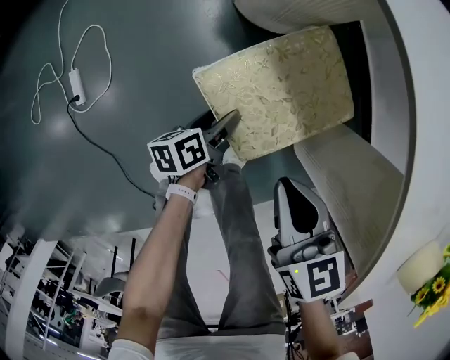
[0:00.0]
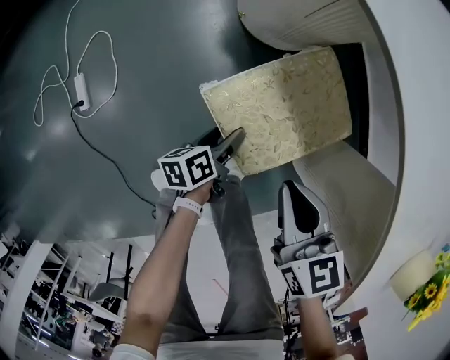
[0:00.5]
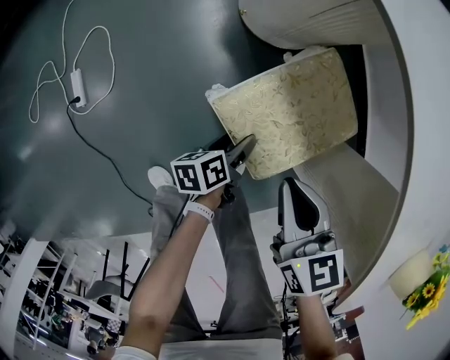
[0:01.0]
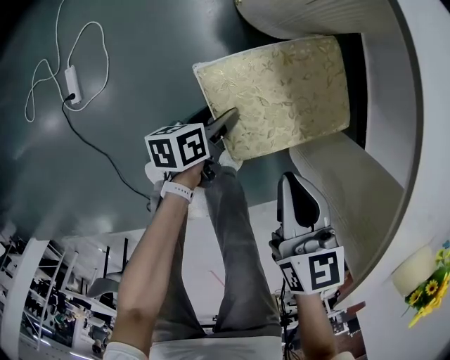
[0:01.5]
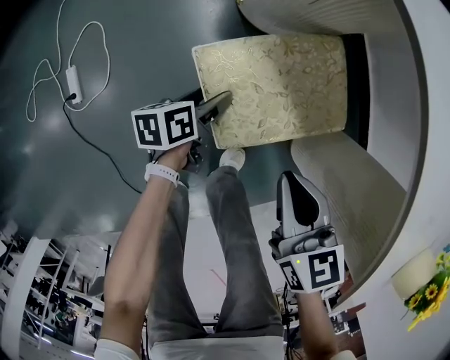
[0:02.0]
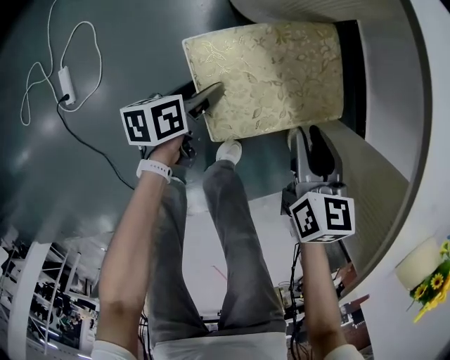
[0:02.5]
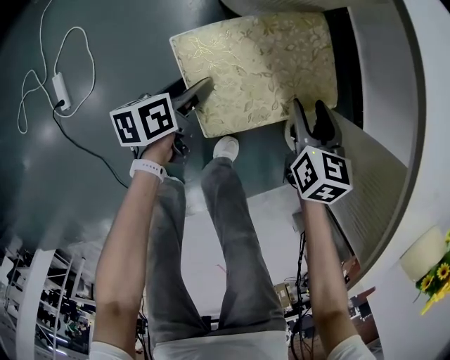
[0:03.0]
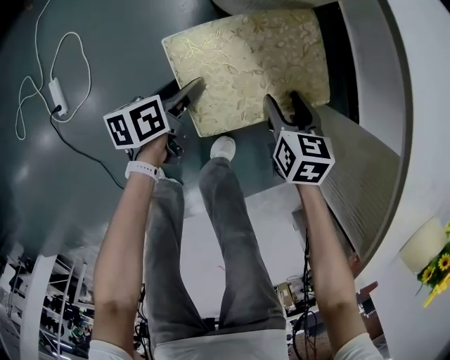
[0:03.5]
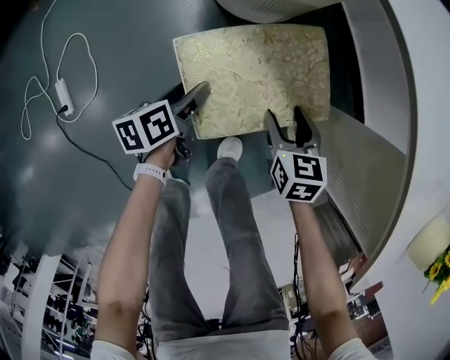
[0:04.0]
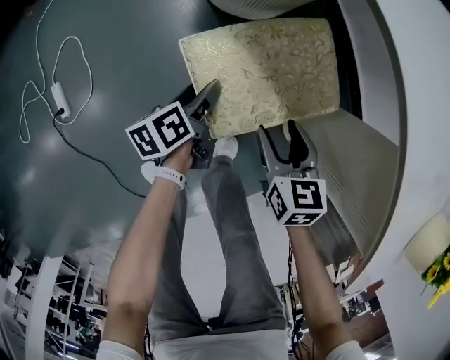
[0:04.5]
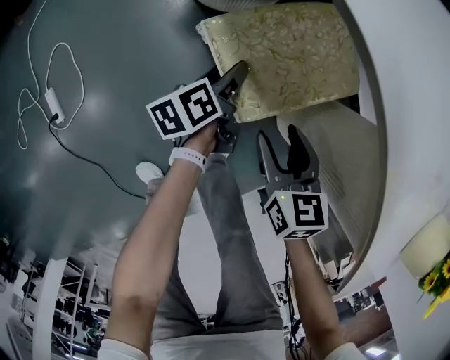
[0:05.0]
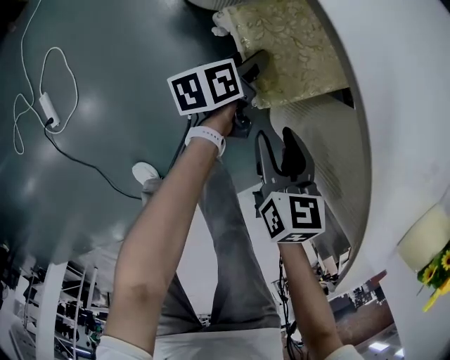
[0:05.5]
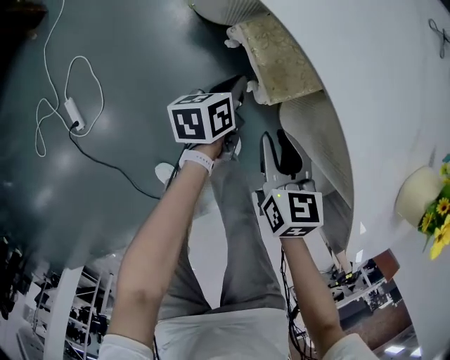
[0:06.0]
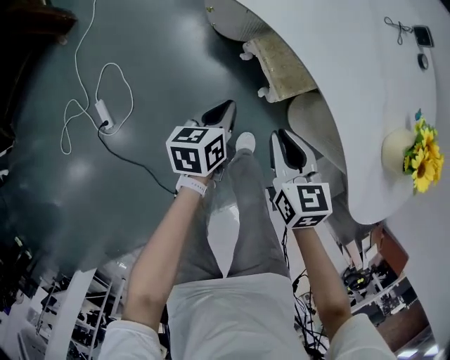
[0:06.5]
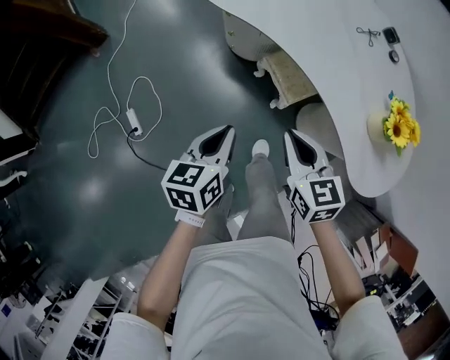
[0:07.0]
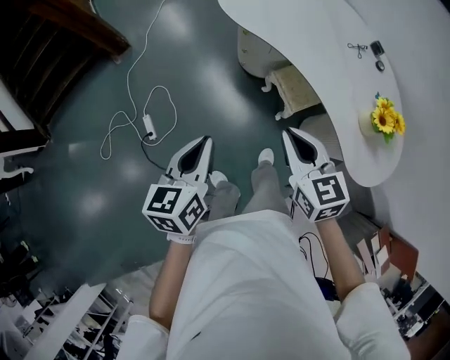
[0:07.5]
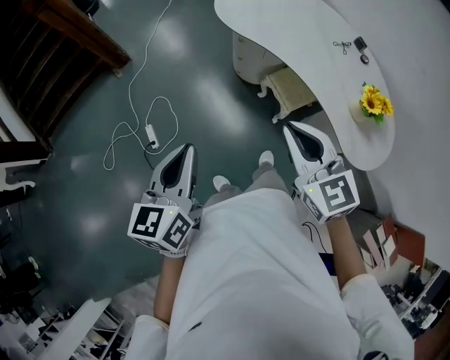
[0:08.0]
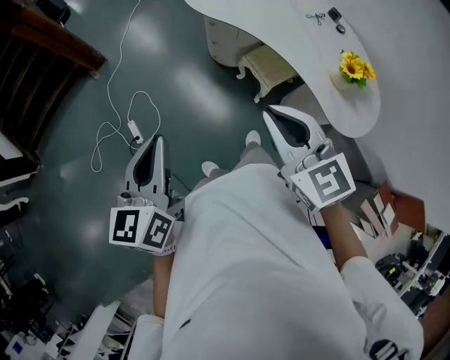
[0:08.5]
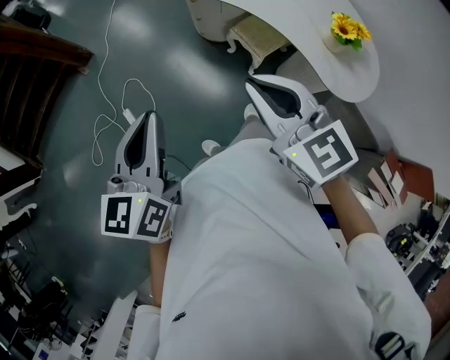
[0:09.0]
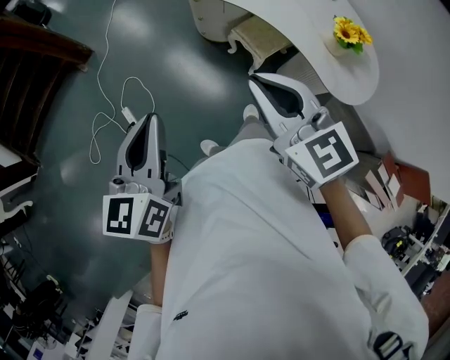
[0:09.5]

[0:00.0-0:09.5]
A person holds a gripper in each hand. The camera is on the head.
0:00.0 to 0:02.0: The grippers stay close to where they were, moving slightly.
0:02.0 to 0:04.0: The right gripper goes some 15 cm downward, and opens its fingers.
0:04.0 to 0:05.5: The right gripper moves upward, roughly 10 cm; the left gripper travels to the right and forward by approximately 20 cm.
0:05.5 to 0:07.5: The left gripper goes roughly 70 cm upward, backward and to the left, swivels approximately 40 degrees, and closes its fingers. The right gripper moves upward, about 50 cm, changes its angle by roughly 30 degrees, and closes.
0:07.5 to 0:09.5: The two grippers go roughly 15 cm upward and backward.

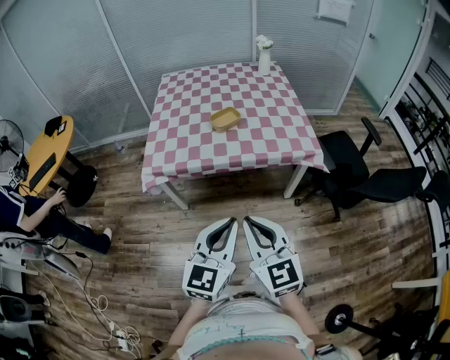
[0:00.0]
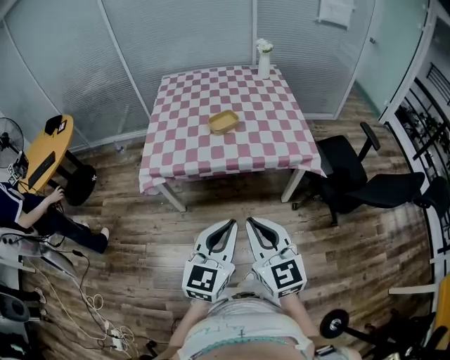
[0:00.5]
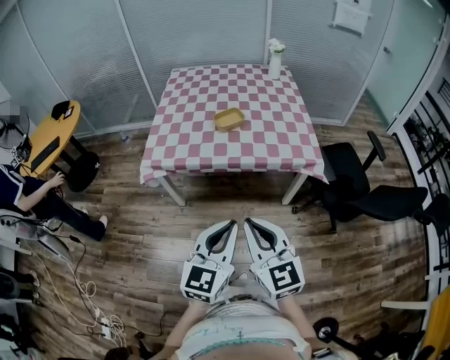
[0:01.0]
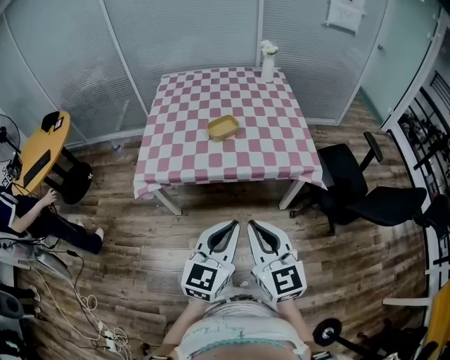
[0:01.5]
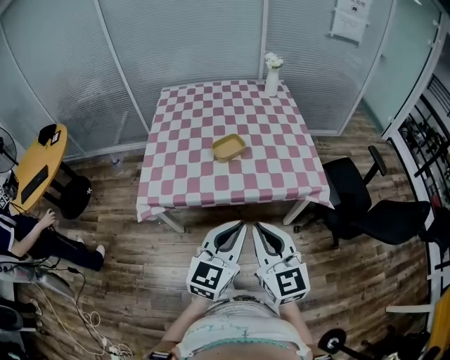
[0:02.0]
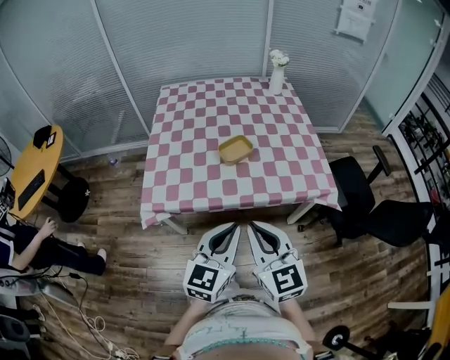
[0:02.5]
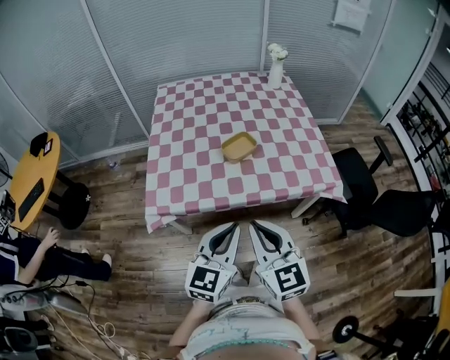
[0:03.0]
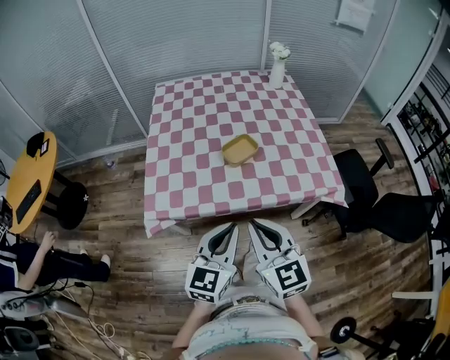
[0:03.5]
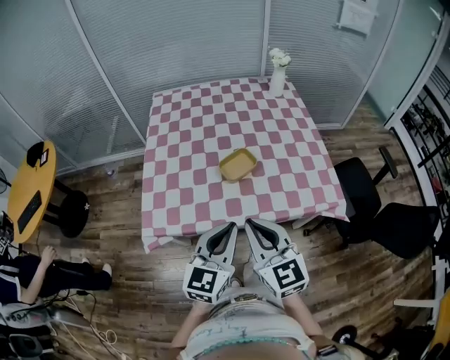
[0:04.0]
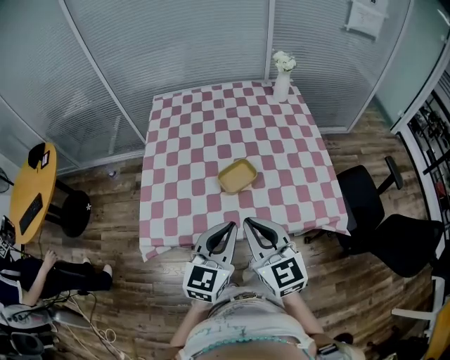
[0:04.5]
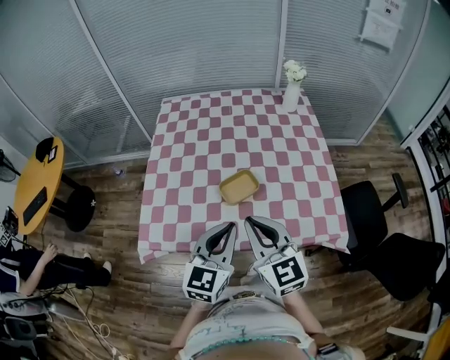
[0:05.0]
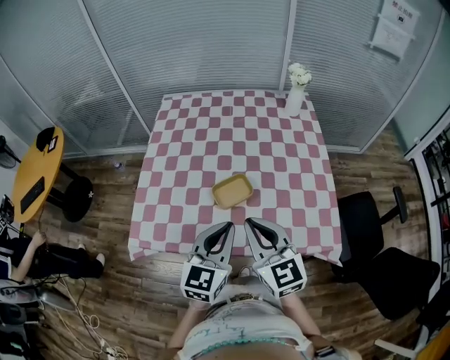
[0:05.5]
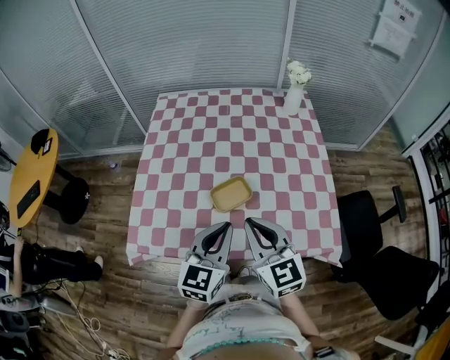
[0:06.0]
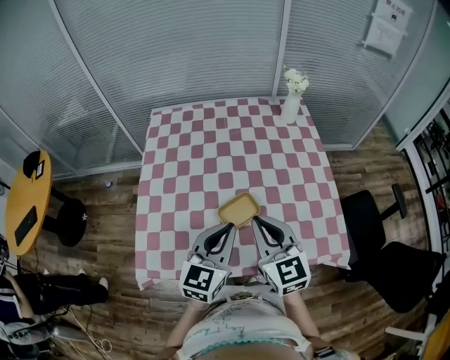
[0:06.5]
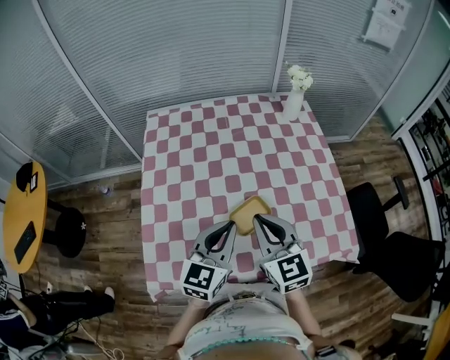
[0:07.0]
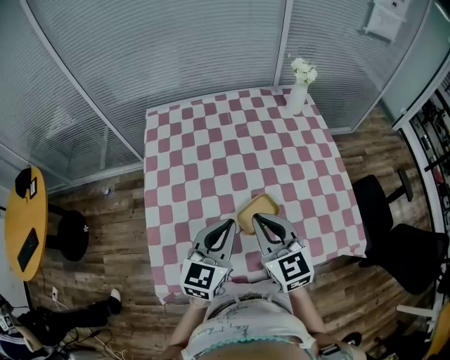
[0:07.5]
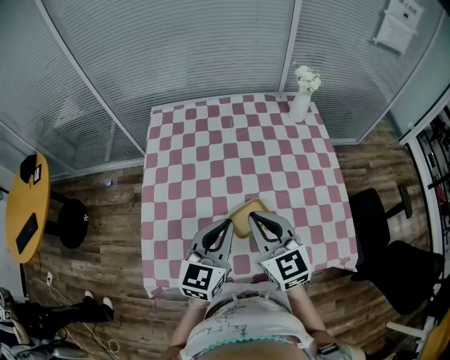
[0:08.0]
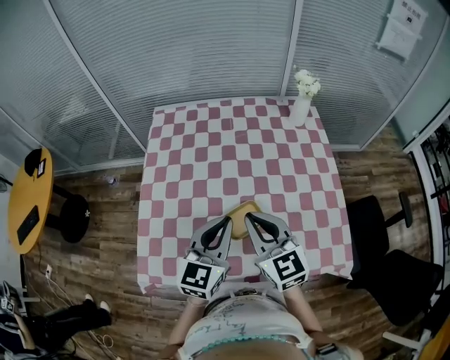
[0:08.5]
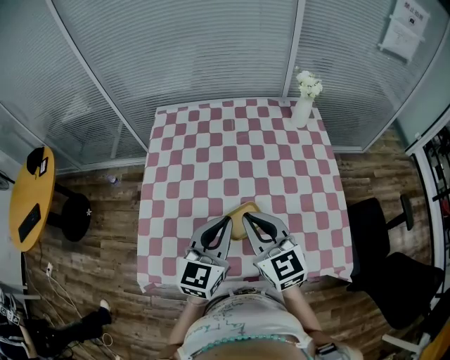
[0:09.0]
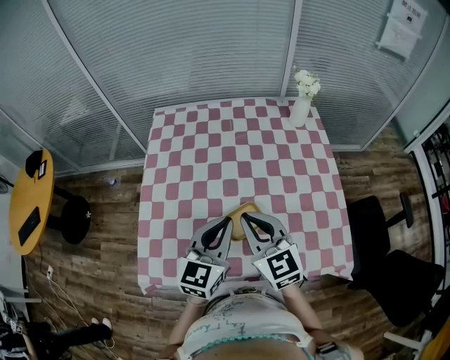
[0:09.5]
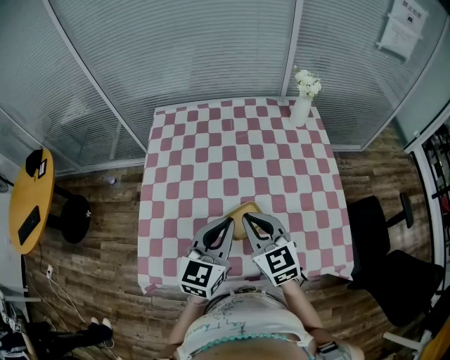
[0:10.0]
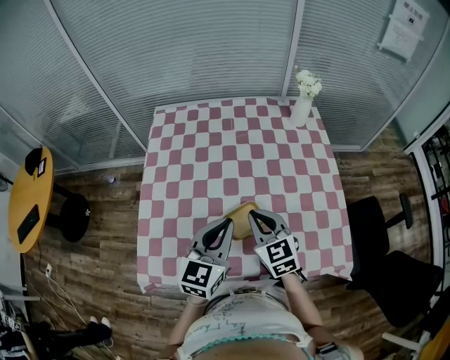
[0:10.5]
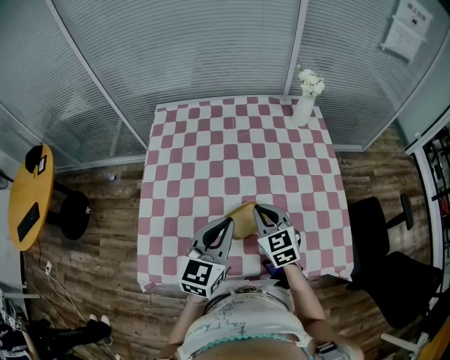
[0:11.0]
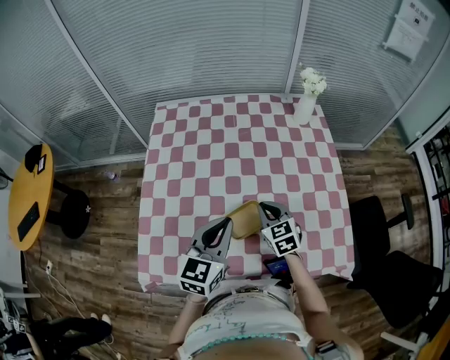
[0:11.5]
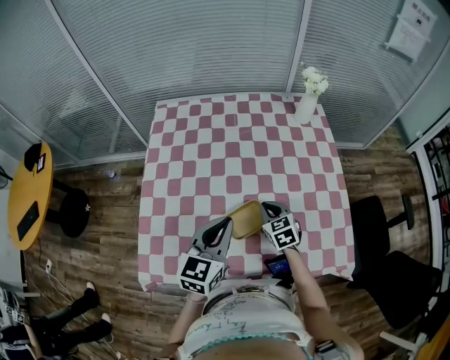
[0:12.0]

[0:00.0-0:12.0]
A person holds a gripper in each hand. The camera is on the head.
0:00.0 to 0:02.0: The grippers both shift forward by roughly 15 cm.
0:02.0 to 0:04.0: The grippers both shift forward and to the left by about 20 cm.
0:04.0 to 0:06.0: Both grippers move forward and to the right, roughly 15 cm.
0:06.0 to 0:08.0: Both grippers travel together forward and to the left, roughly 15 cm.
0:08.0 to 0:10.0: The grippers stay close to where they were, moving slightly.
0:10.0 to 0:12.0: The right gripper is displaced downward and forward by about 20 cm, and changes its angle by some 20 degrees.

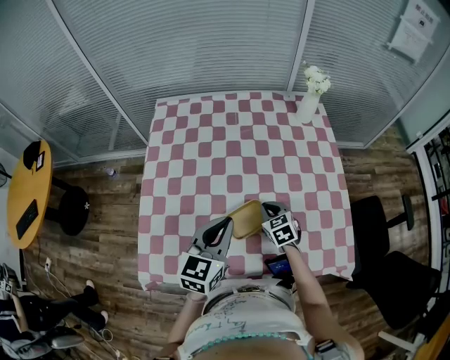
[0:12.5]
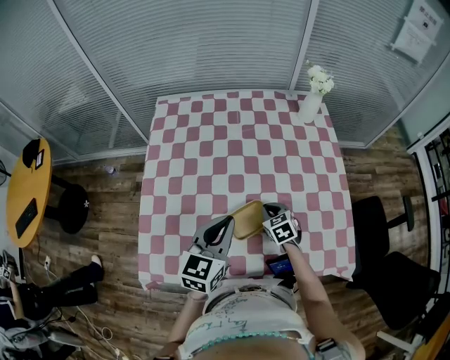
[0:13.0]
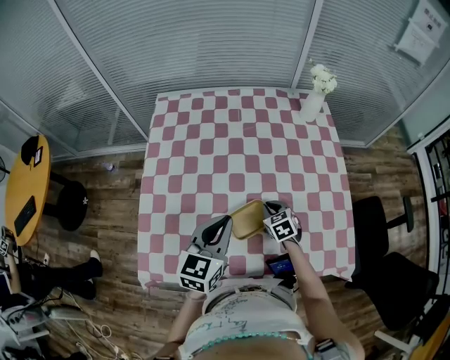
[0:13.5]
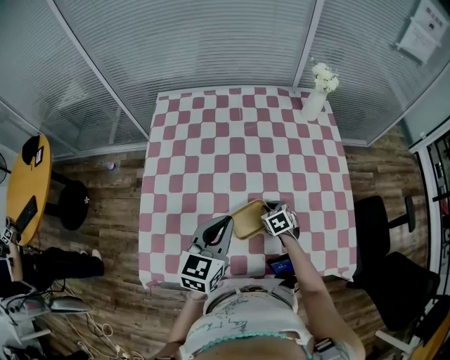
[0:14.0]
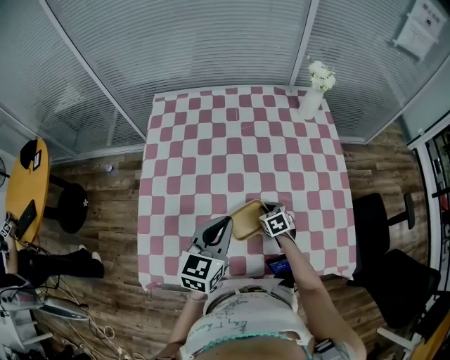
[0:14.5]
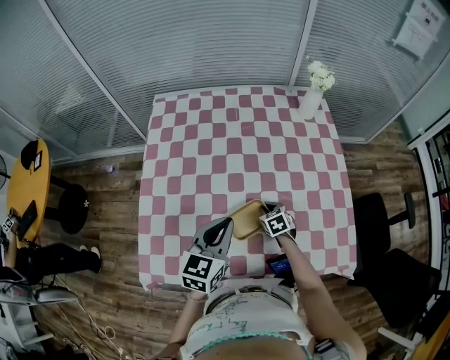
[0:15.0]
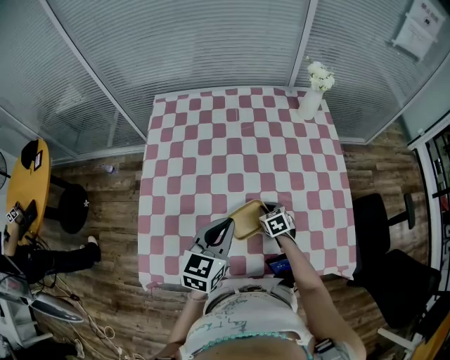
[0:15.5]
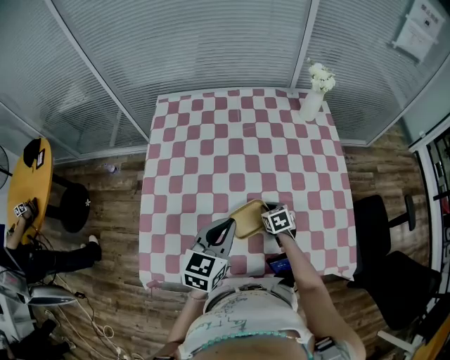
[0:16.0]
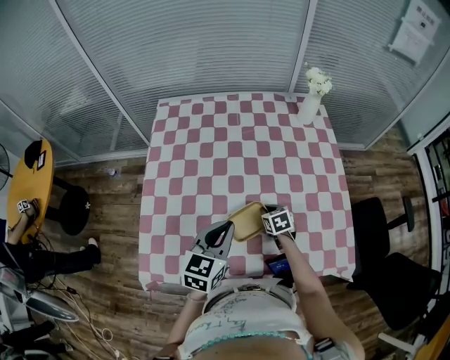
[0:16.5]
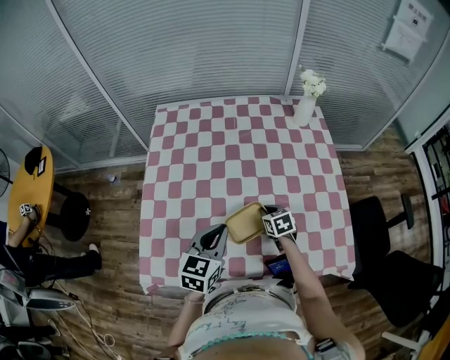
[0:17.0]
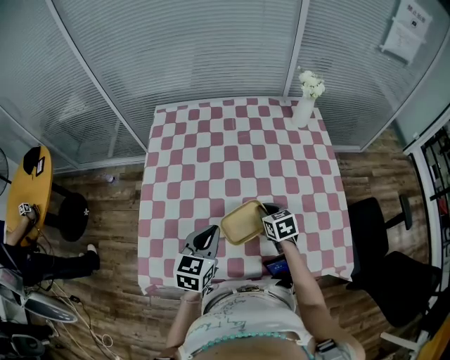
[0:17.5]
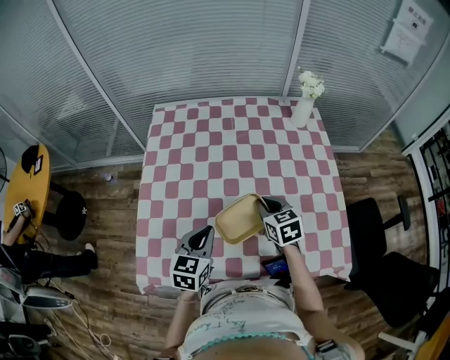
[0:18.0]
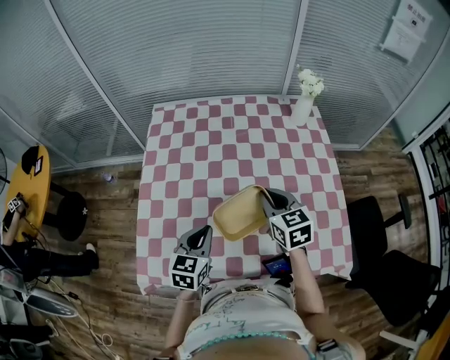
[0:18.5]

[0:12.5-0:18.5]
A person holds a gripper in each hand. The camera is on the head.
0:12.5 to 0:14.5: The right gripper shifts some 10 cm downward.
0:14.5 to 0:16.5: There are only small adjustments of the grippers.
0:16.5 to 0:18.5: The left gripper travels to the left by some 5 cm. Meanwhile the right gripper is displaced upward by some 25 cm, and changes its angle by about 30 degrees.
